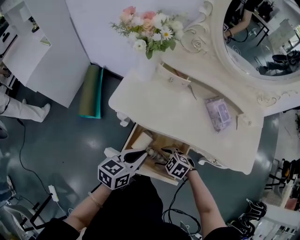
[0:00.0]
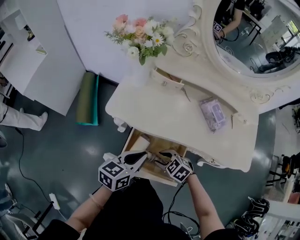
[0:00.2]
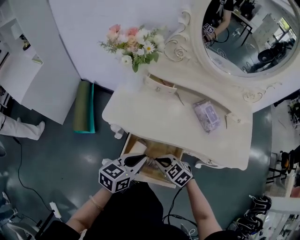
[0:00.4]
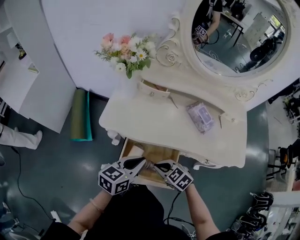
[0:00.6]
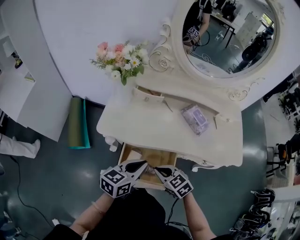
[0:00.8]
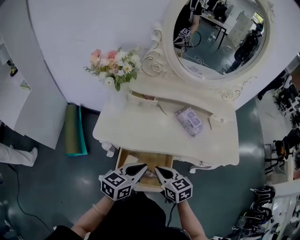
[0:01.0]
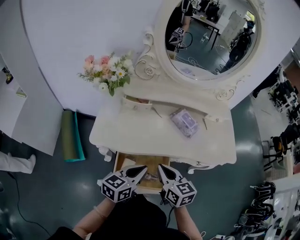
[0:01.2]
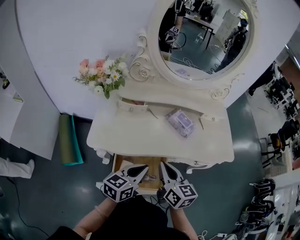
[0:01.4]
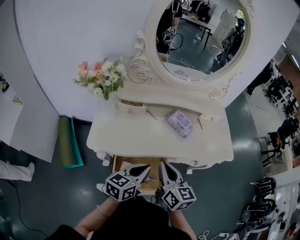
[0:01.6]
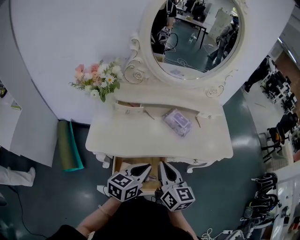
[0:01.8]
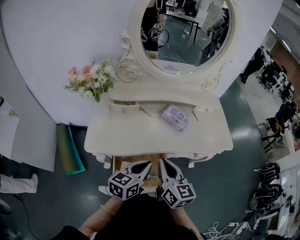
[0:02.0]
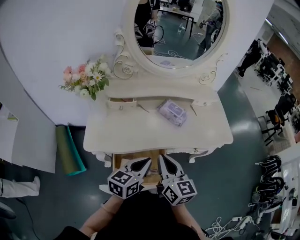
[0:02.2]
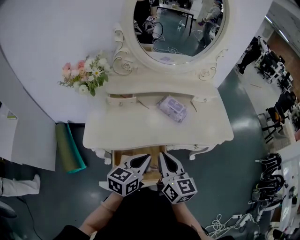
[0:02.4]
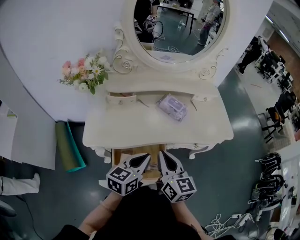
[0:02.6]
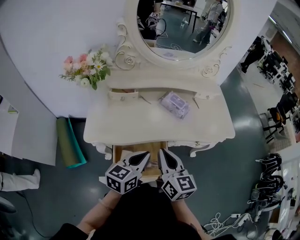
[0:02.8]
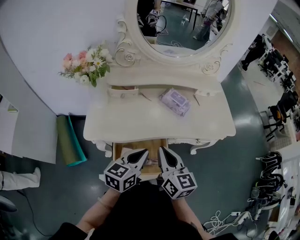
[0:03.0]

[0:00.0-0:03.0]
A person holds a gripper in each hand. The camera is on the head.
0.0 to 1.6 s: The right gripper heads upward, covering about 25 cm, tilts its fingers about 50 degrees upward, and closes up. Meanwhile the left gripper changes place by approximately 10 cm, and swivels about 20 degrees.
1.6 to 3.0 s: The grippers move only a little.

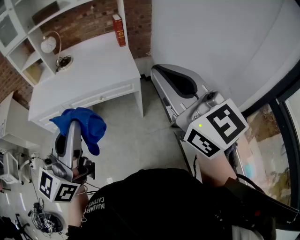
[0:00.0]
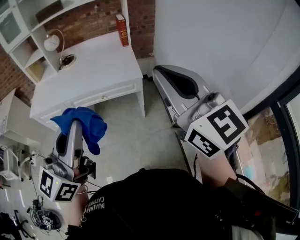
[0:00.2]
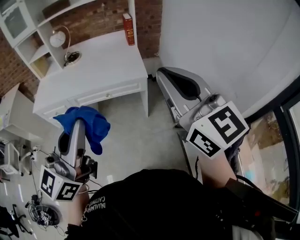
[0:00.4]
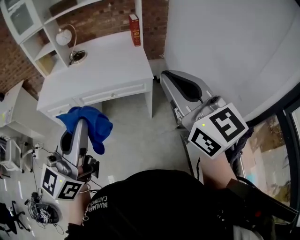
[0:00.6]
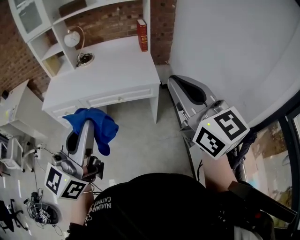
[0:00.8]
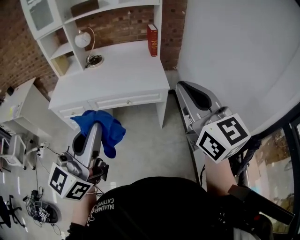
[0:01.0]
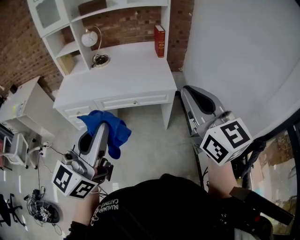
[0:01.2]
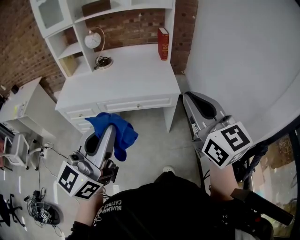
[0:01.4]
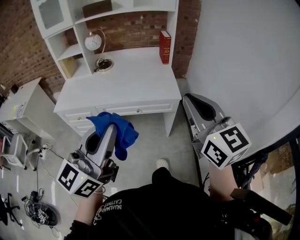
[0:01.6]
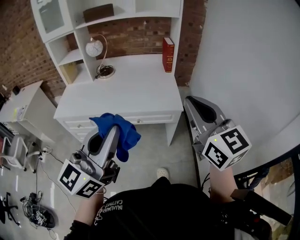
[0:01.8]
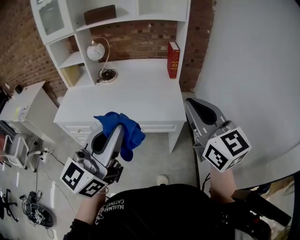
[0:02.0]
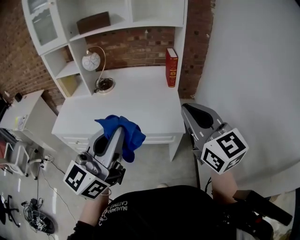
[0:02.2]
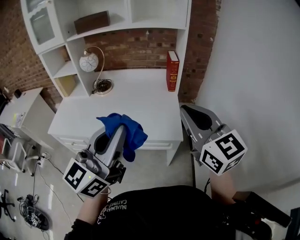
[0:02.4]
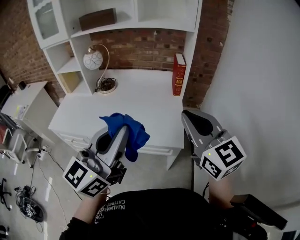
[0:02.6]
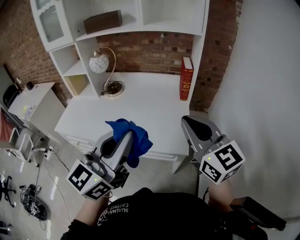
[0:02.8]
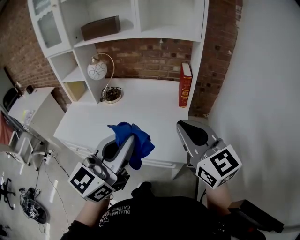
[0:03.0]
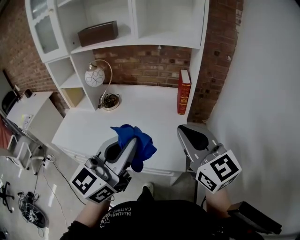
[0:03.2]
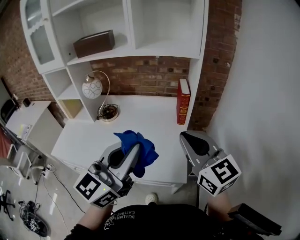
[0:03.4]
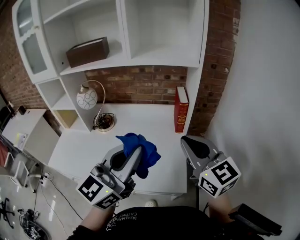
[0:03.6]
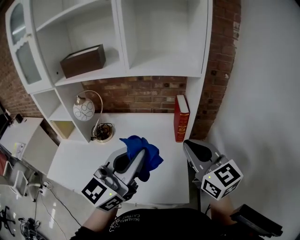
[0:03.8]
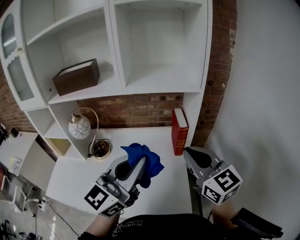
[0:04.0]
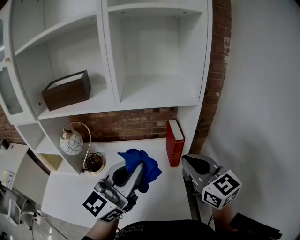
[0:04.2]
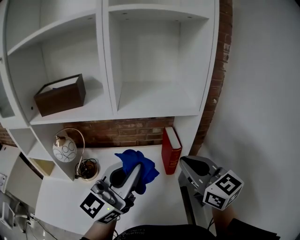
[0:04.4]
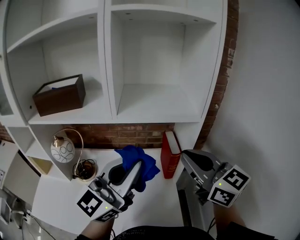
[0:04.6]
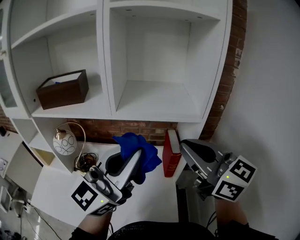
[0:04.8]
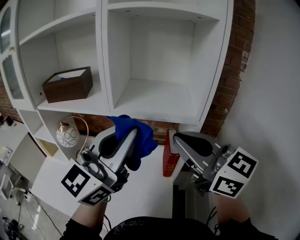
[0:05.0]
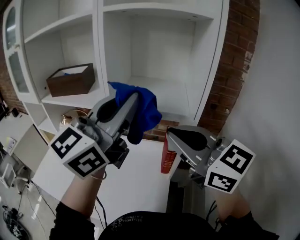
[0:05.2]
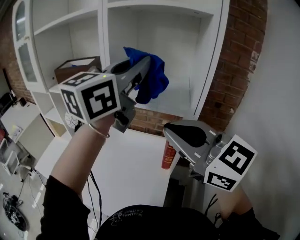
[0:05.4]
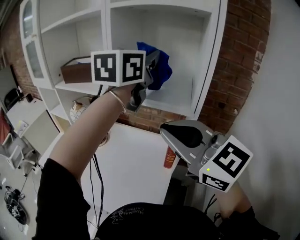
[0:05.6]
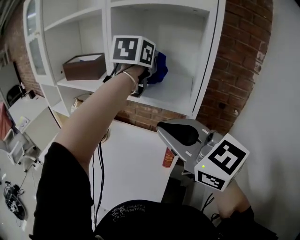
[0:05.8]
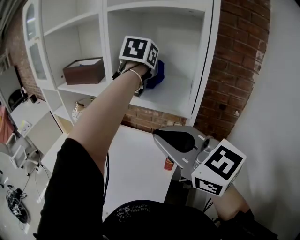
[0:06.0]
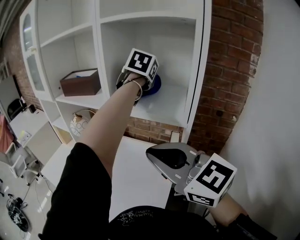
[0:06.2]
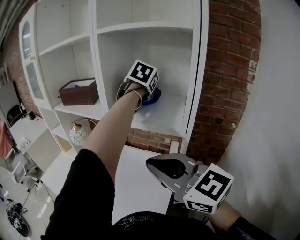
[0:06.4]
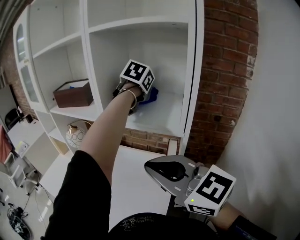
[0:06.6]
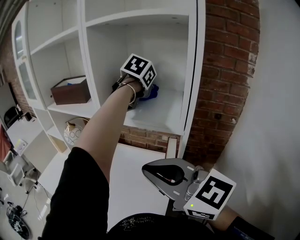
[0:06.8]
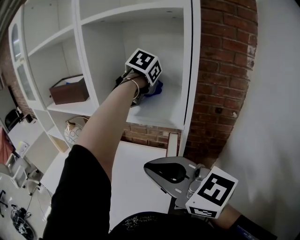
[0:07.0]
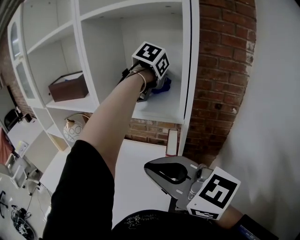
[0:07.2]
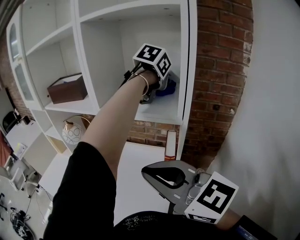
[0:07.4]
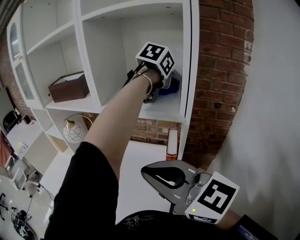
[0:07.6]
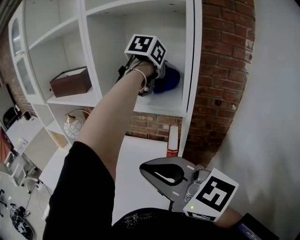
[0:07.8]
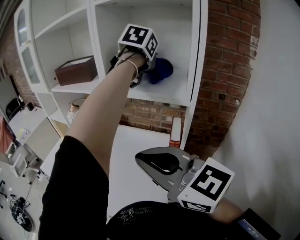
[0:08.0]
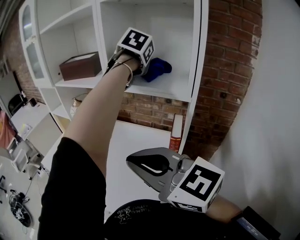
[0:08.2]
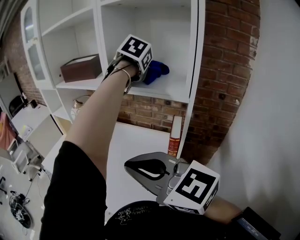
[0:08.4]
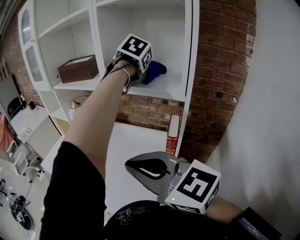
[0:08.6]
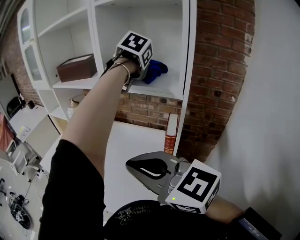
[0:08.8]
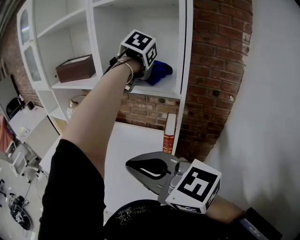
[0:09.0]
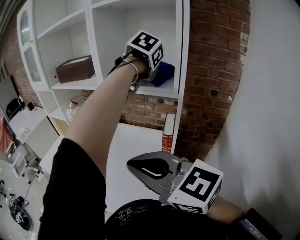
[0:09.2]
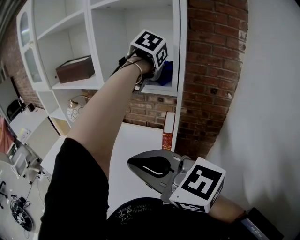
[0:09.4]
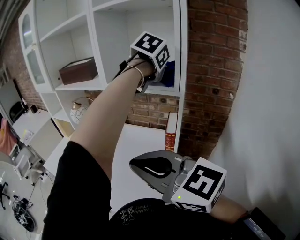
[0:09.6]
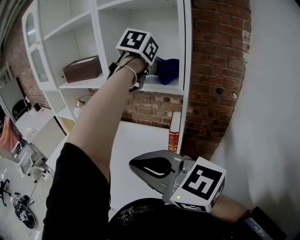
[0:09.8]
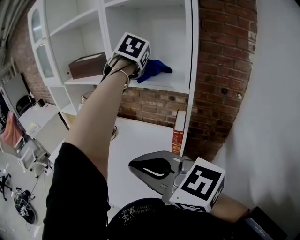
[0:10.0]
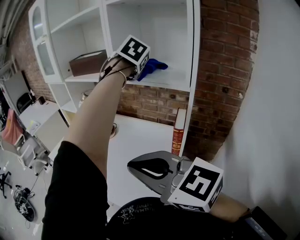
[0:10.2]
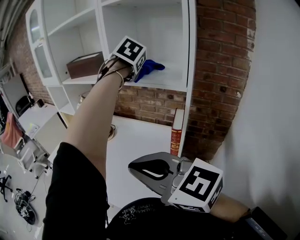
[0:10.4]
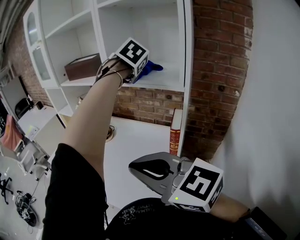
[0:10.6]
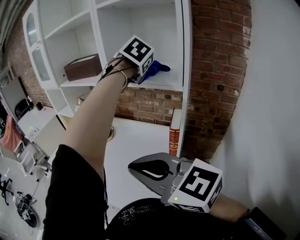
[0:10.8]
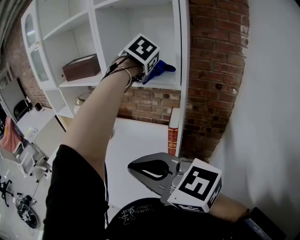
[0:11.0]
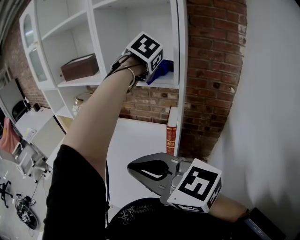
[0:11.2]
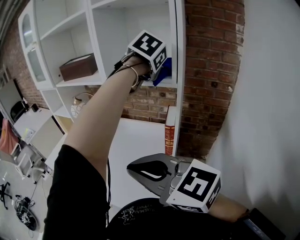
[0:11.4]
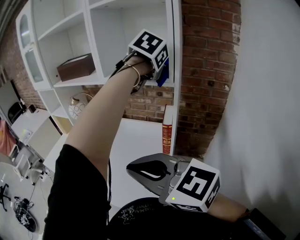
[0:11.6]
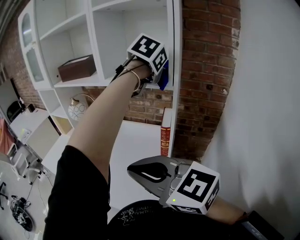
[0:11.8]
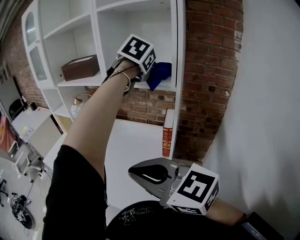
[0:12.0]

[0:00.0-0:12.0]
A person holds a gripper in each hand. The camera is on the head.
0.0 to 1.6 s: The left gripper travels to the left by some 10 cm. The right gripper is displaced to the left and forward by approximately 10 cm.
1.6 to 3.0 s: The left gripper moves forward and to the right, some 35 cm. Meanwhile the right gripper is displaced forward by some 30 cm.
3.0 to 4.4 s: The grippers both shift forward by approximately 30 cm.
4.4 to 6.0 s: The left gripper moves approximately 35 cm, and tilts its fingers some 40 degrees downward. The right gripper moves upward, roughly 10 cm, and changes its angle by about 40 degrees.
6.0 to 7.6 s: The left gripper moves to the right and downward, some 15 cm, and swivels approximately 30 degrees; the right gripper moves downward, approximately 5 cm.
7.6 to 9.0 s: The left gripper travels to the left by approximately 10 cm, and rotates approximately 20 degrees. Meanwhile the right gripper changes place by roughly 10 cm.
9.0 to 10.4 s: The left gripper moves to the left, some 10 cm.
10.4 to 12.0 s: The left gripper travels backward and to the right by some 10 cm.

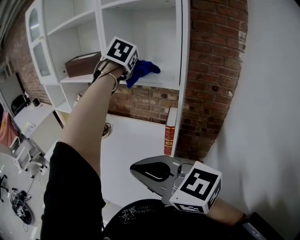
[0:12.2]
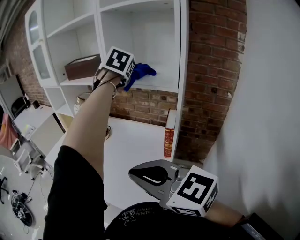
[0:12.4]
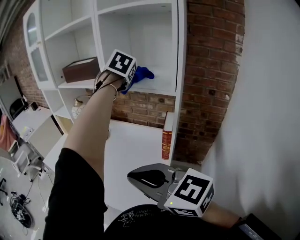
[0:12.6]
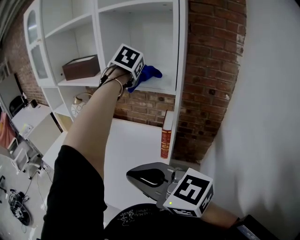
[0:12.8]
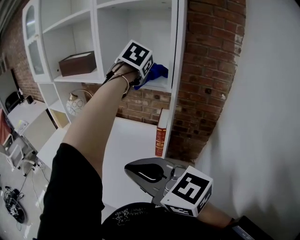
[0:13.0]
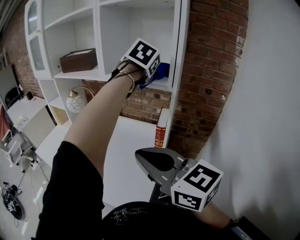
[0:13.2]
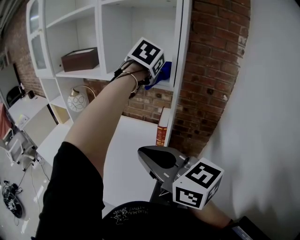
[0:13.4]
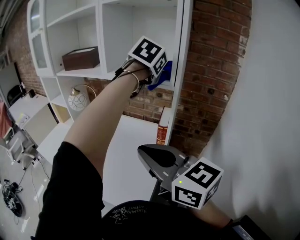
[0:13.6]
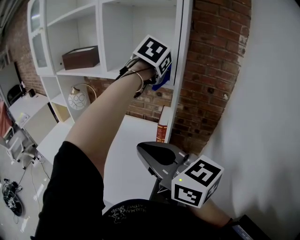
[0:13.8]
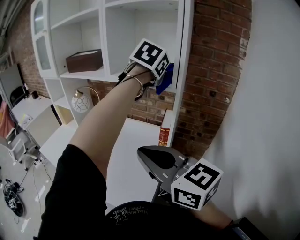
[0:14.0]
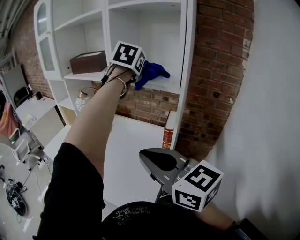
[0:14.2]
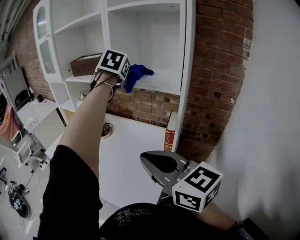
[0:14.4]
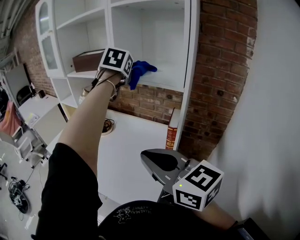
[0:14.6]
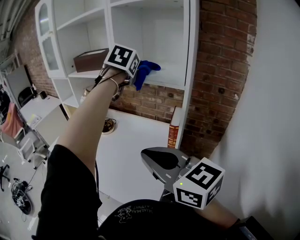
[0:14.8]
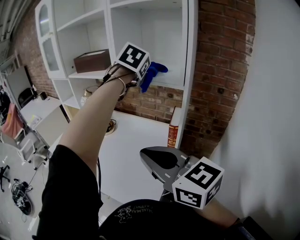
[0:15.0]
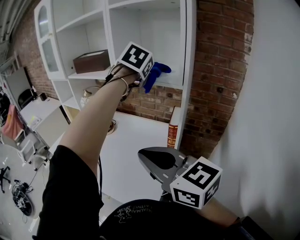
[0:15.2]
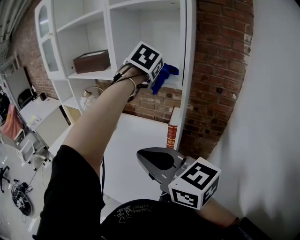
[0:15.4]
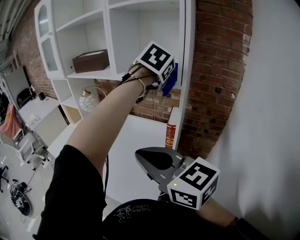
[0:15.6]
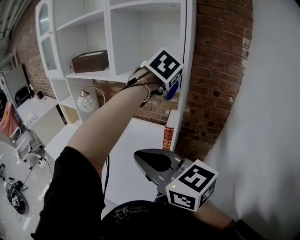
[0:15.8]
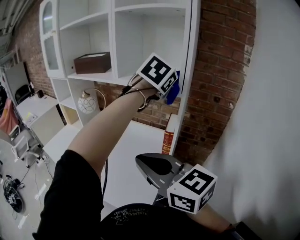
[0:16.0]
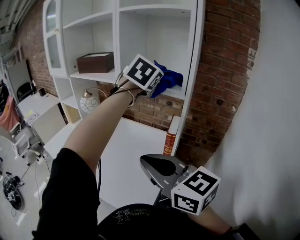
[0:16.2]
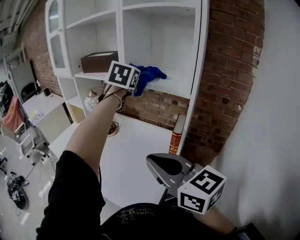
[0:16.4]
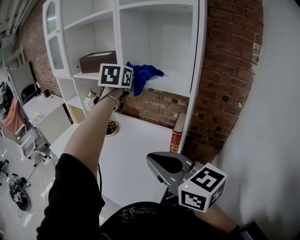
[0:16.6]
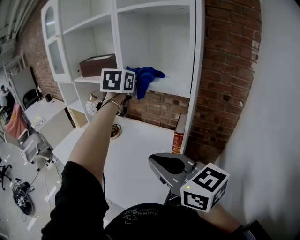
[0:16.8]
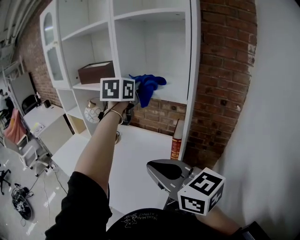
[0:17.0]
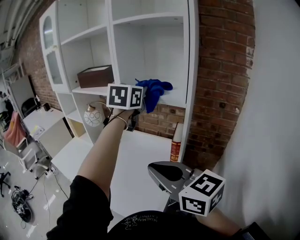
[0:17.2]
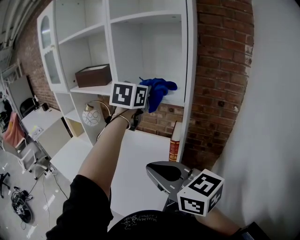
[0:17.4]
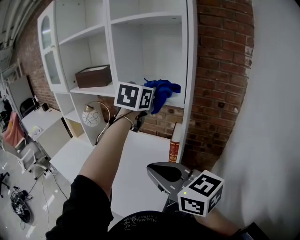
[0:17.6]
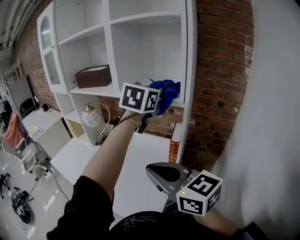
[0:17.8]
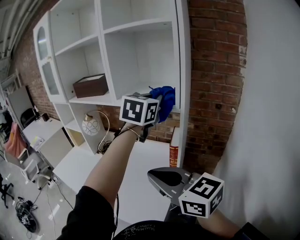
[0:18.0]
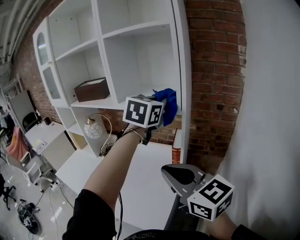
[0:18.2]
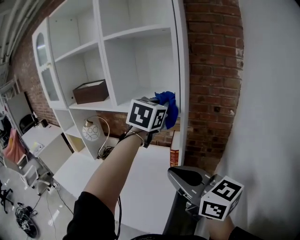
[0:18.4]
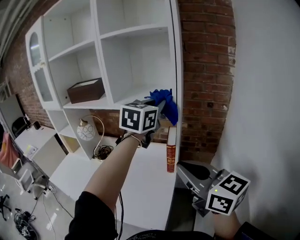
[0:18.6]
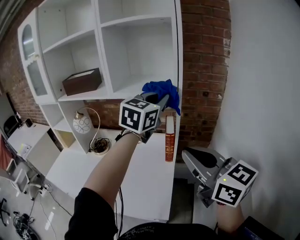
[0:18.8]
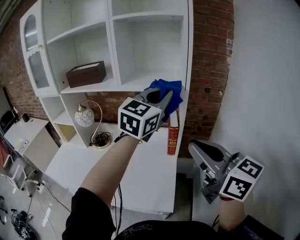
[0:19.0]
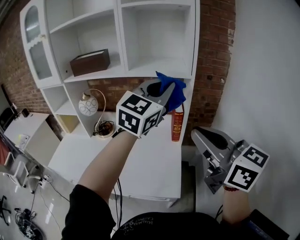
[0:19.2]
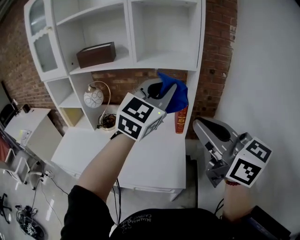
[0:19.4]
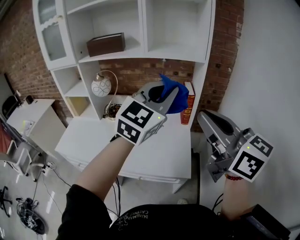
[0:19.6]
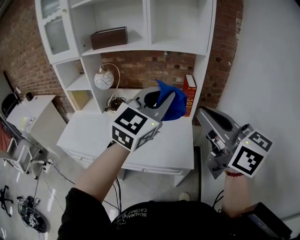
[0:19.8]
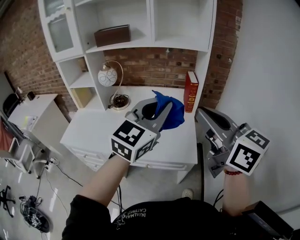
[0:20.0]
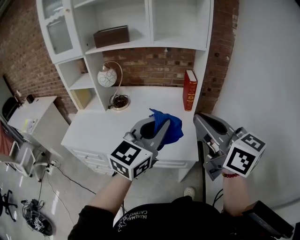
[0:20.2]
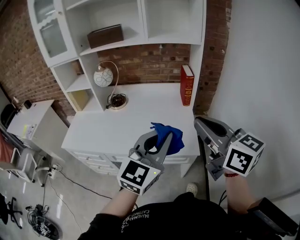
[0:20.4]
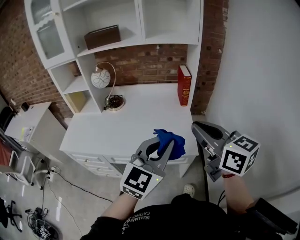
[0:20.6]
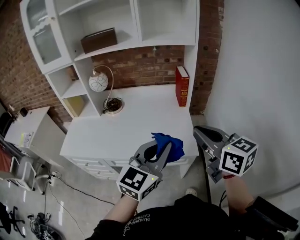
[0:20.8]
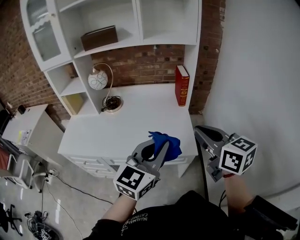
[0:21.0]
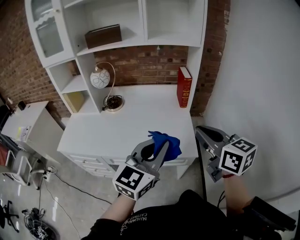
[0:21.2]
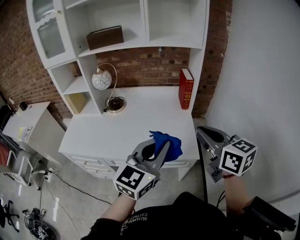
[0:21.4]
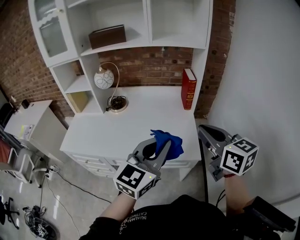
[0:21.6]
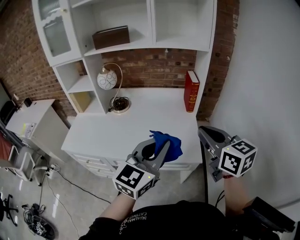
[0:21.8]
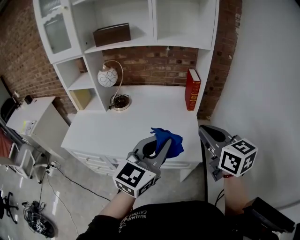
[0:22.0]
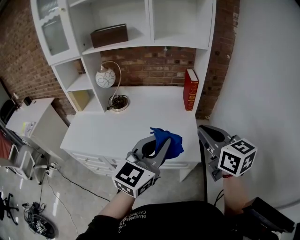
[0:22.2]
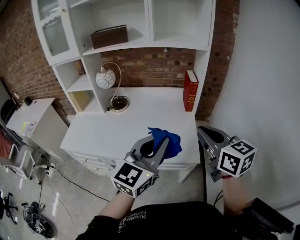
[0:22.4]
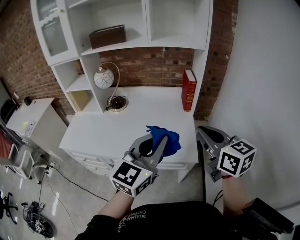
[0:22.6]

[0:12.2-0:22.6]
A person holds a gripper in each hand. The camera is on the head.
12.2 to 13.6 s: The left gripper shifts some 15 cm to the right and backward. Meanwhile the right gripper goes about 5 cm to the right.
13.6 to 15.2 s: The left gripper moves to the left, about 10 cm.
15.2 to 16.6 s: The left gripper shifts approximately 5 cm to the left, and swivels approximately 30 degrees.
16.6 to 18.2 s: The right gripper moves about 5 cm; the left gripper heads to the right and backward, covering roughly 20 cm, and changes its angle by roughly 20 degrees.
18.2 to 19.6 s: The left gripper is displaced backward and to the left by about 30 cm, and rotates approximately 30 degrees. The right gripper moves backward and to the left, about 20 cm, and rotates some 20 degrees.
19.6 to 21.2 s: The left gripper shifts approximately 25 cm backward, downward and to the left, and changes its angle by roughly 20 degrees, while the right gripper goes roughly 15 cm downward, and turns by roughly 20 degrees.
21.2 to 22.6 s: The grippers make only small movements.
